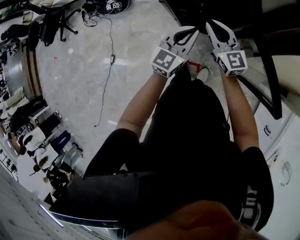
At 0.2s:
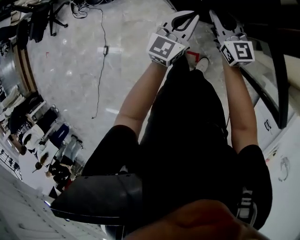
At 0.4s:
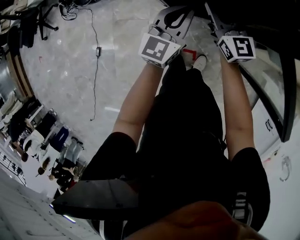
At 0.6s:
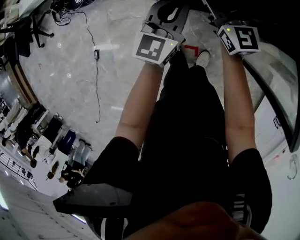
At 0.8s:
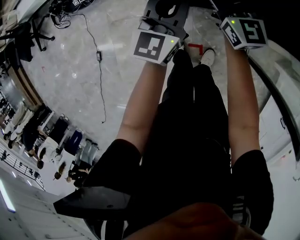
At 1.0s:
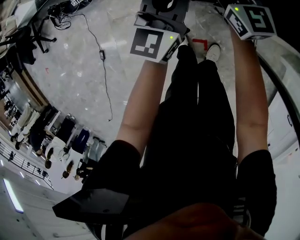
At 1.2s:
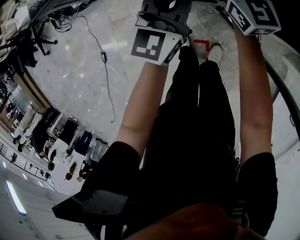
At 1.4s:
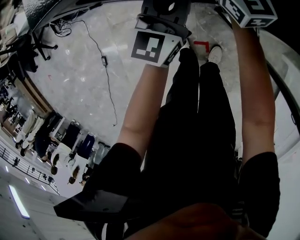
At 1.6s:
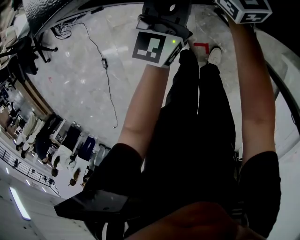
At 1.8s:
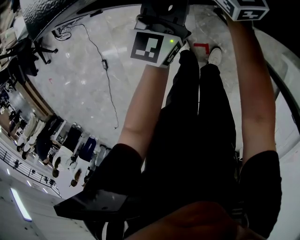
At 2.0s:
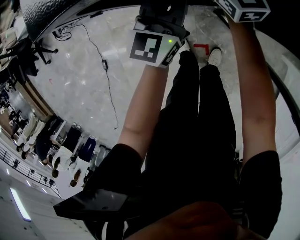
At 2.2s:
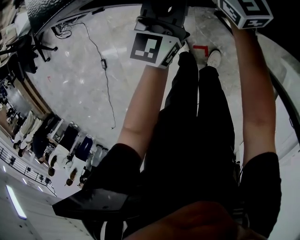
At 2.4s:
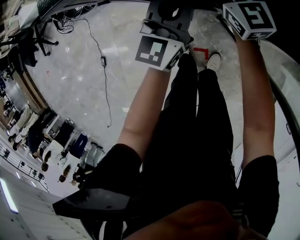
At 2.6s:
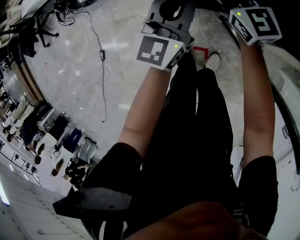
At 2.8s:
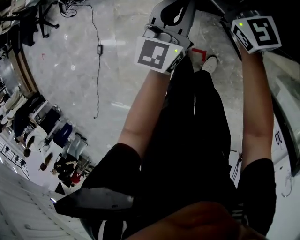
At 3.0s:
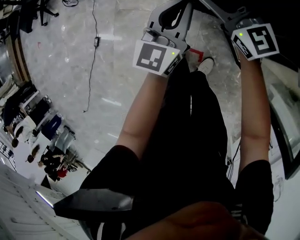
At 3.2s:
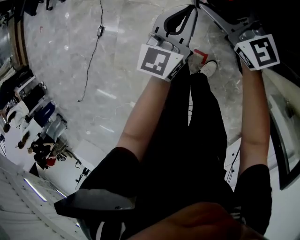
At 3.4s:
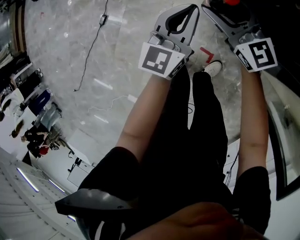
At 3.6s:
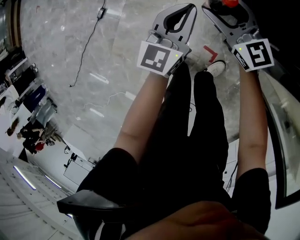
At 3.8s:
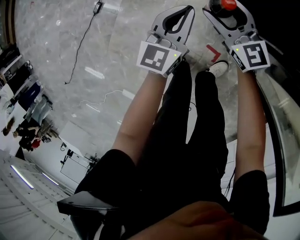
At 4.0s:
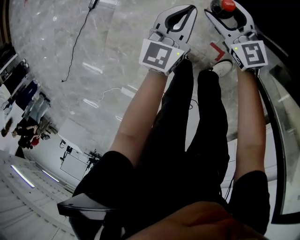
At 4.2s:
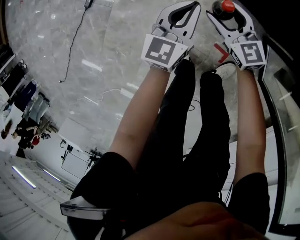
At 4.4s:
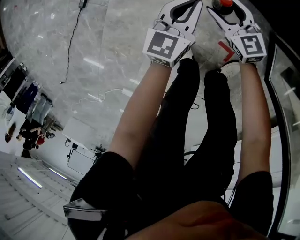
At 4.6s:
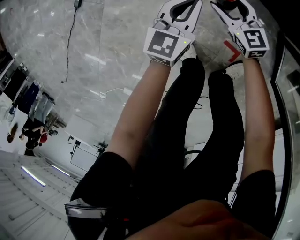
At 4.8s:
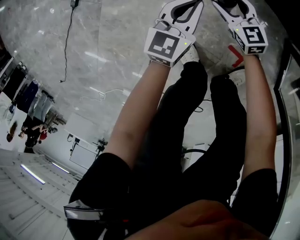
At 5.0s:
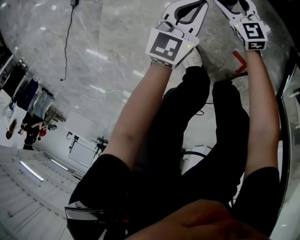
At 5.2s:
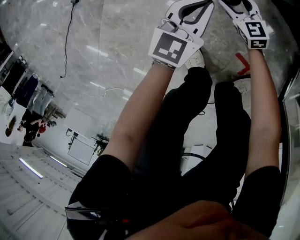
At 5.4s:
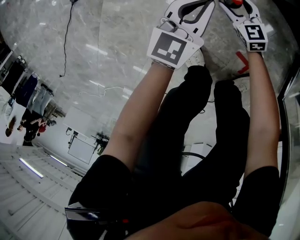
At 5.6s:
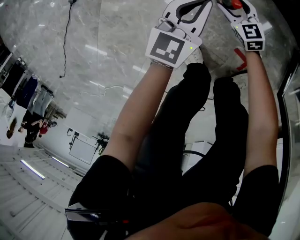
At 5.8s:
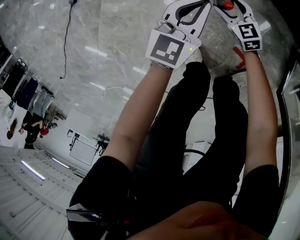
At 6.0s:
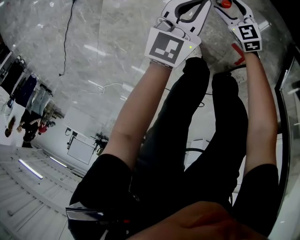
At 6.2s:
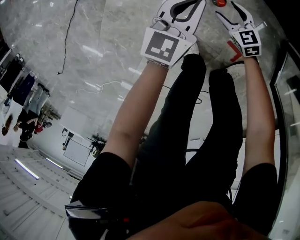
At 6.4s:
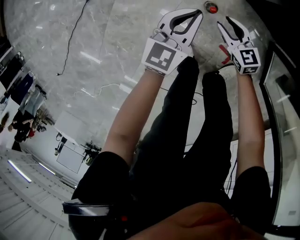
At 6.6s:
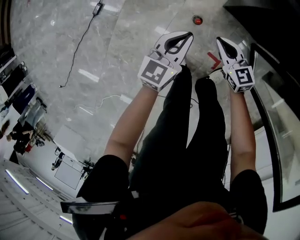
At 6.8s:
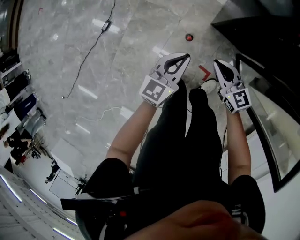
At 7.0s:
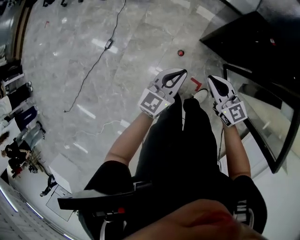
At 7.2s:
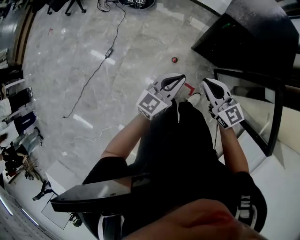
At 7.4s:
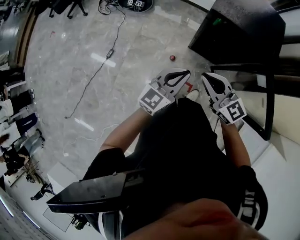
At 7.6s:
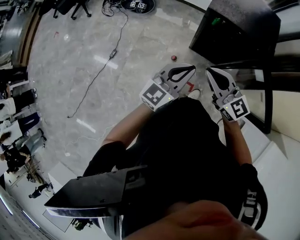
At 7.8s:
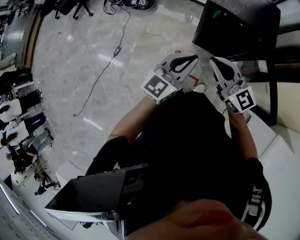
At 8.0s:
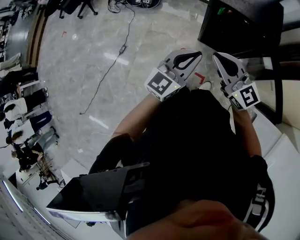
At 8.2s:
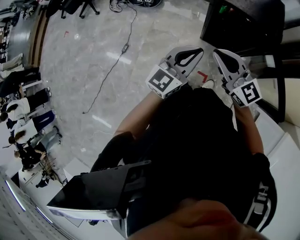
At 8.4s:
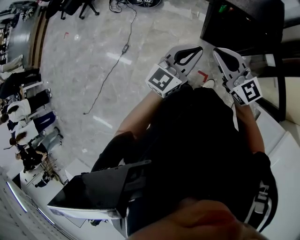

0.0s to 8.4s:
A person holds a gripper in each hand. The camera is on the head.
0.0s to 1.4s: The left gripper is displaced downward and forward by roughly 20 cm. Meanwhile the right gripper shifts some 25 cm forward and downward, and opens up.
1.4s to 2.8s: The grippers both shift backward by some 5 cm.
2.8s to 4.2s: Both grippers travel together downward and to the left, approximately 50 cm. The left gripper changes its angle by some 20 degrees. Meanwhile the right gripper changes its angle by approximately 30 degrees.
4.2s to 5.6s: The right gripper shifts about 35 cm downward; the left gripper travels downward by approximately 20 cm.
5.6s to 7.0s: Both grippers travel together upward, about 70 cm. The right gripper swivels some 20 degrees, and closes up.
7.0s to 8.4s: The grippers both shift upward by about 30 cm. The right gripper changes its angle by about 20 degrees.

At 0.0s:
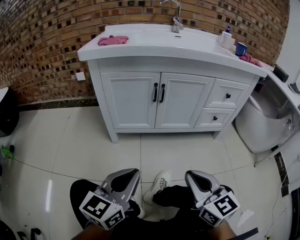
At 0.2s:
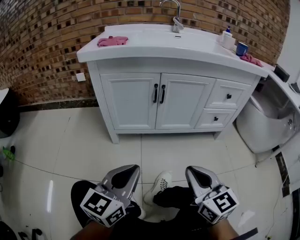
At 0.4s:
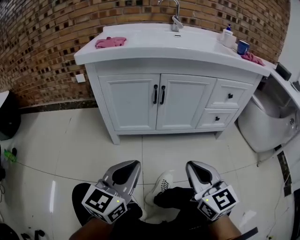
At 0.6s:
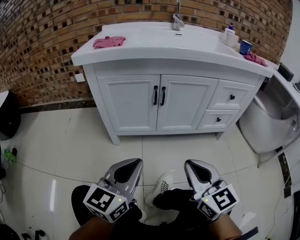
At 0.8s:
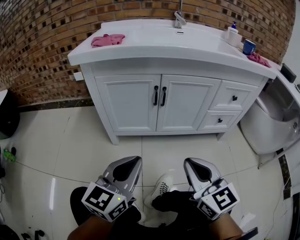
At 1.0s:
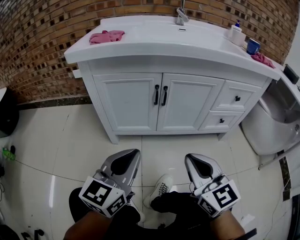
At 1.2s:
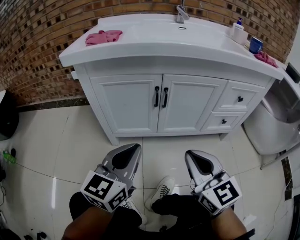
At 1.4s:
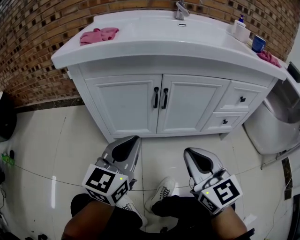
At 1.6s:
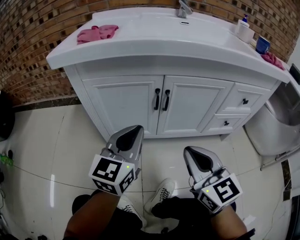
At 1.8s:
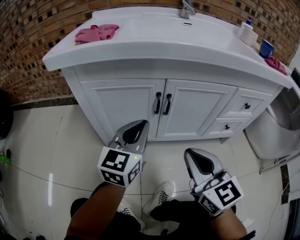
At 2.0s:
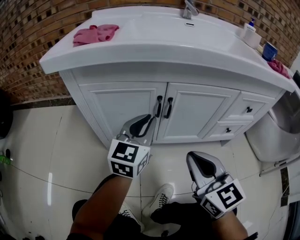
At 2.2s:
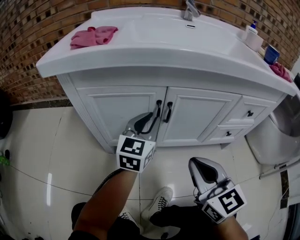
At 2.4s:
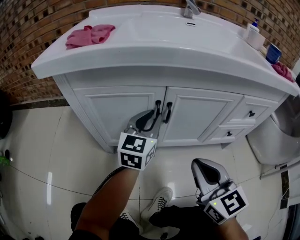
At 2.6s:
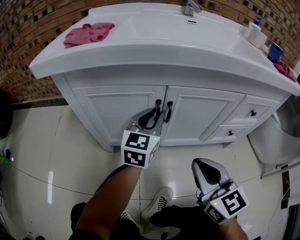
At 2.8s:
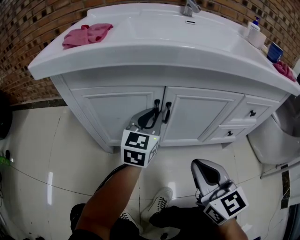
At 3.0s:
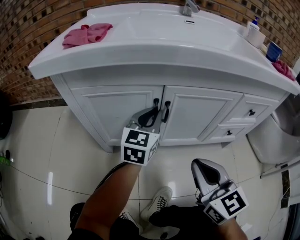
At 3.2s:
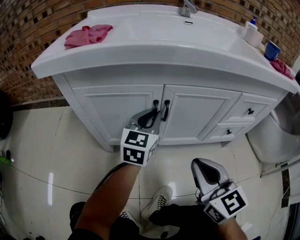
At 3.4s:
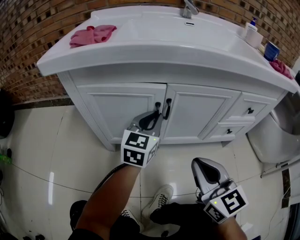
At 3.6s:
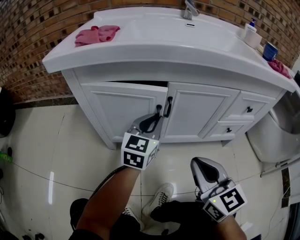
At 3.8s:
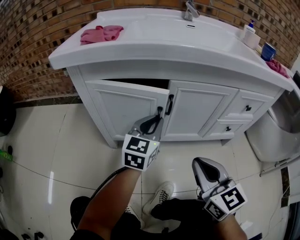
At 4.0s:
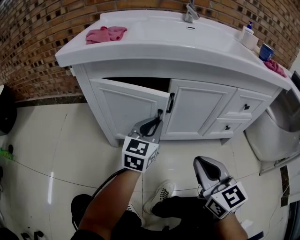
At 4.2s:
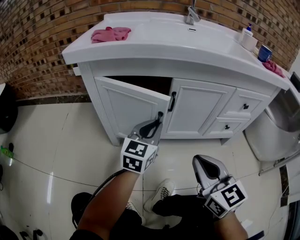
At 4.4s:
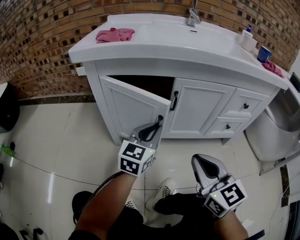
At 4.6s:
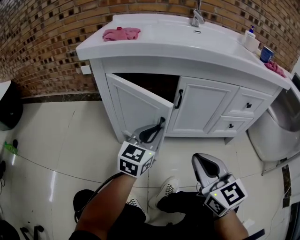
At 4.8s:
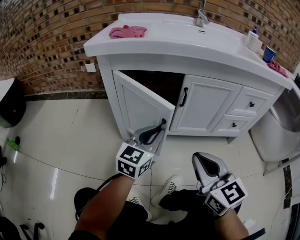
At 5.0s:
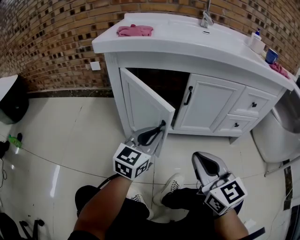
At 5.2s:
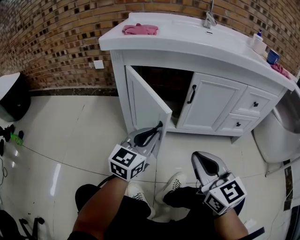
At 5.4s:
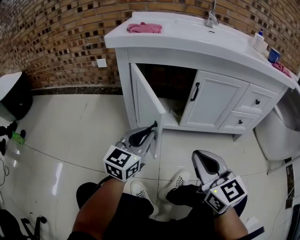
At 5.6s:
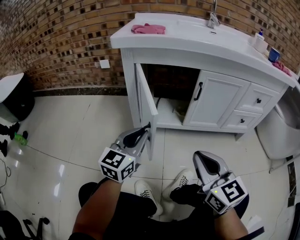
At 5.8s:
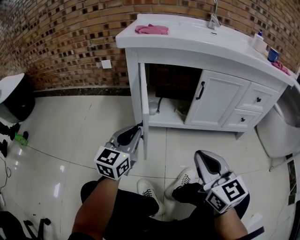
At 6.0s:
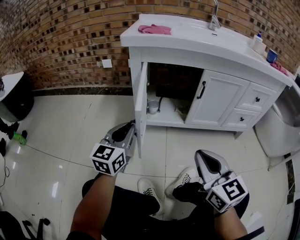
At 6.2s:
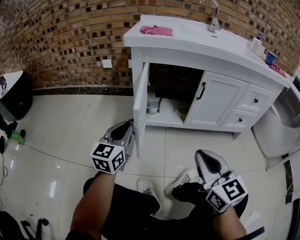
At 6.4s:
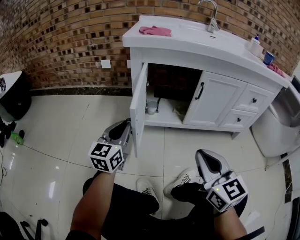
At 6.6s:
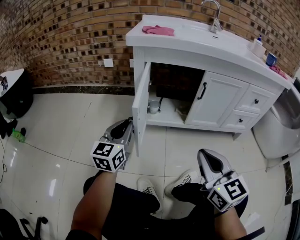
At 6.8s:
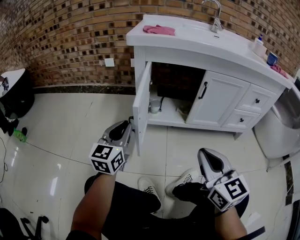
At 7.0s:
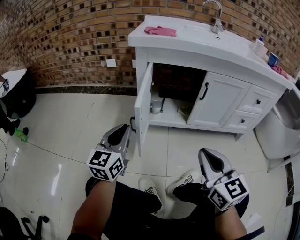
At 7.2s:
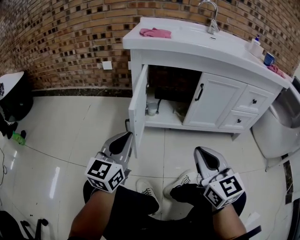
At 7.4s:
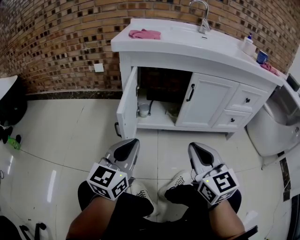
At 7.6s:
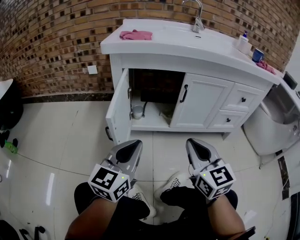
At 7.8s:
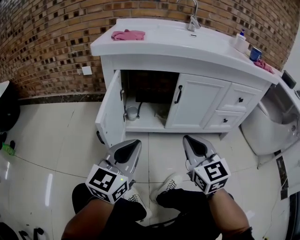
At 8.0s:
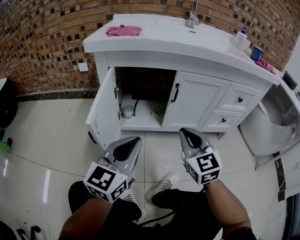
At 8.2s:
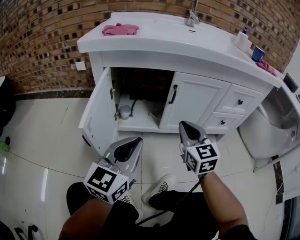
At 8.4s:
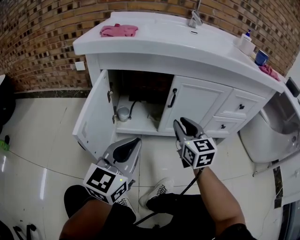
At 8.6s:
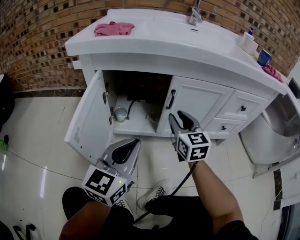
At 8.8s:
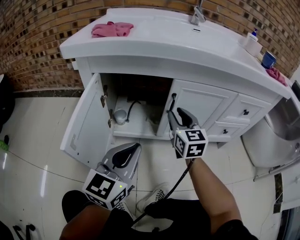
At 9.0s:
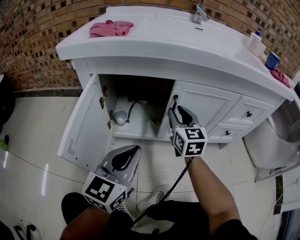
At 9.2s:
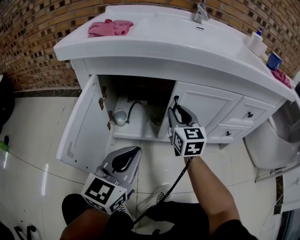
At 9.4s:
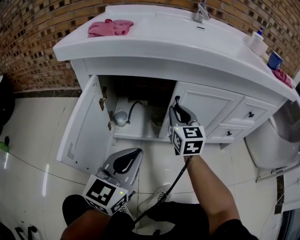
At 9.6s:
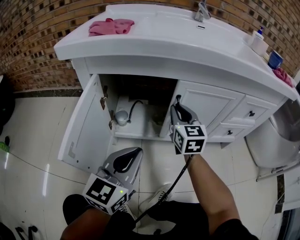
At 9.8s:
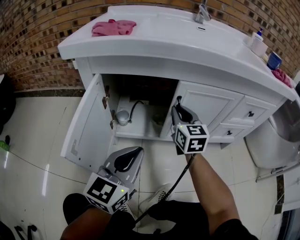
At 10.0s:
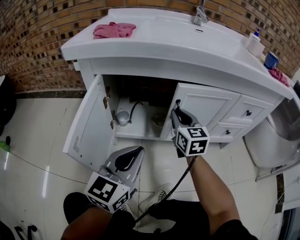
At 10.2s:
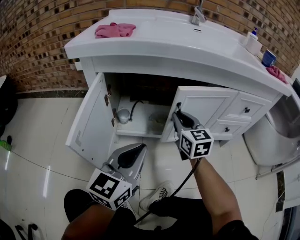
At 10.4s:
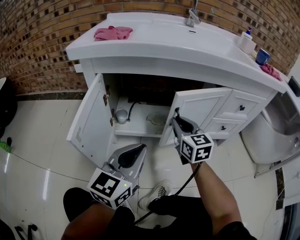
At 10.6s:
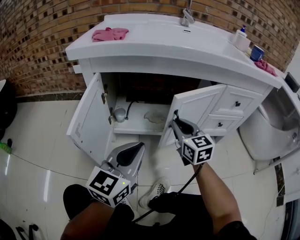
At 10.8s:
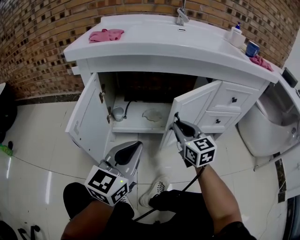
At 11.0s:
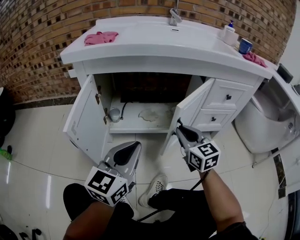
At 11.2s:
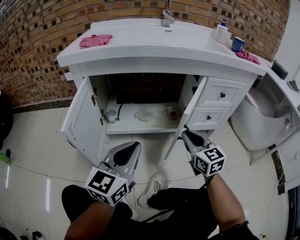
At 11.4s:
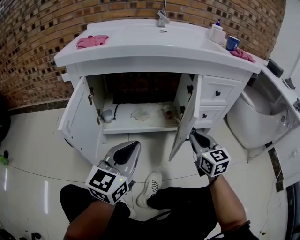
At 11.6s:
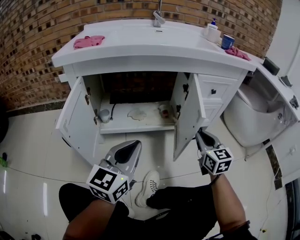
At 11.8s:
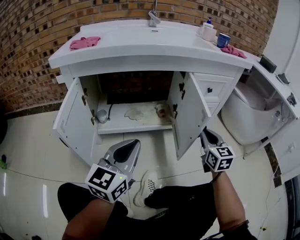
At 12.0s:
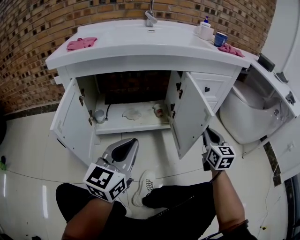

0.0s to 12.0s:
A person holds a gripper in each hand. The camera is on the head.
0.0s to 1.6s: Both grippers travel together forward, approximately 25 cm.
1.6s to 3.0s: The left gripper goes approximately 15 cm forward and to the right, while the right gripper shifts by approximately 5 cm.
3.0s to 4.4s: The left gripper heads backward, covering about 15 cm. The right gripper travels backward by approximately 10 cm.
4.4s to 6.0s: The left gripper shifts some 25 cm to the left and backward. The right gripper moves to the left and backward, roughly 15 cm.
6.0s to 7.6s: The right gripper heads forward, covering roughly 5 cm, while the left gripper goes approximately 10 cm to the right and backward.
7.6s to 9.0s: The right gripper moves forward, about 30 cm, and opens its fingers, while the left gripper moves forward and to the right, some 15 cm.
9.0s to 10.4s: The right gripper shifts about 5 cm backward.
10.4s to 12.0s: The left gripper heads to the right and backward, covering approximately 10 cm, while the right gripper travels to the right by some 30 cm, and swivels about 20 degrees.

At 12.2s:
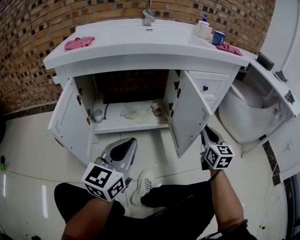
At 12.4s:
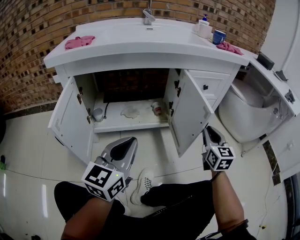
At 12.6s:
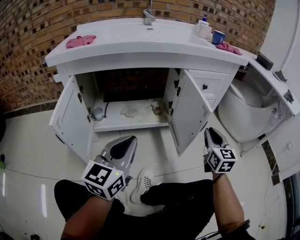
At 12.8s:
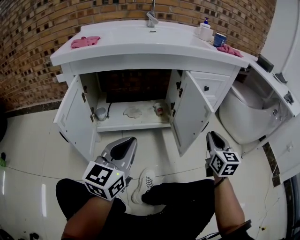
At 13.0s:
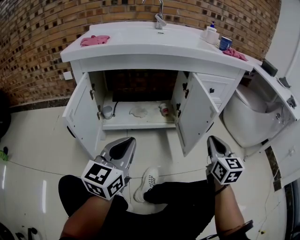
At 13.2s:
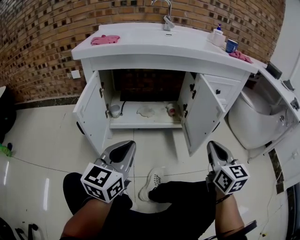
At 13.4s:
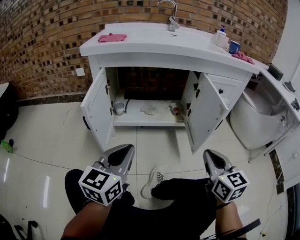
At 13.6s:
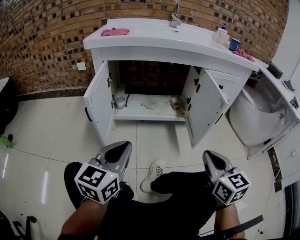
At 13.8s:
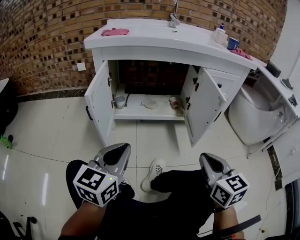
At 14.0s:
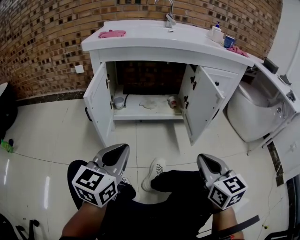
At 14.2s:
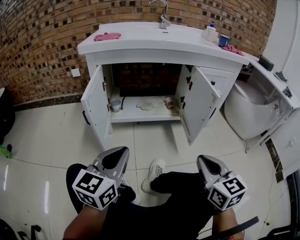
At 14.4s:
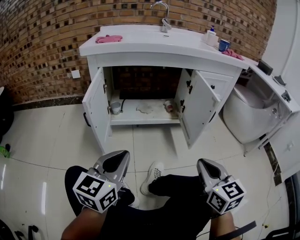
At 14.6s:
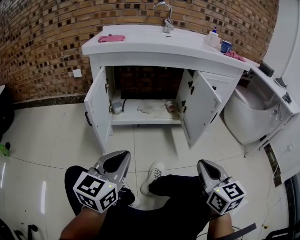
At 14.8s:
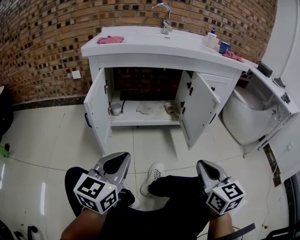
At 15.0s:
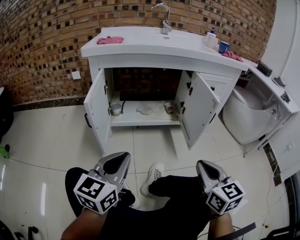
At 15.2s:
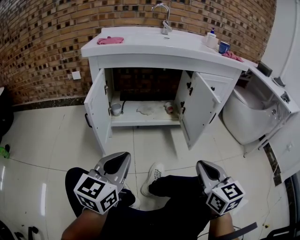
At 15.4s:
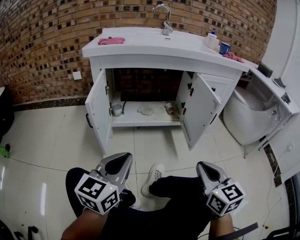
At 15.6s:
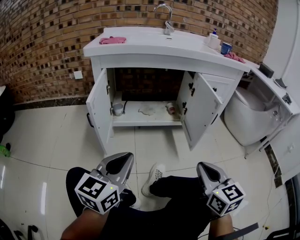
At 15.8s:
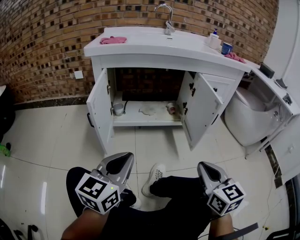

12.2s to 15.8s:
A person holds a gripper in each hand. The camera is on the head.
12.2s to 14.0s: The right gripper travels backward and to the left by about 30 cm. The left gripper is displaced backward and to the left by approximately 20 cm.
14.0s to 15.8s: The grippers move only a little.
